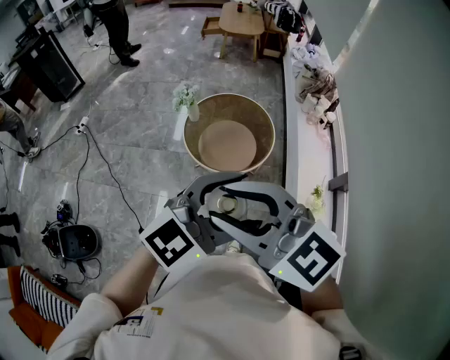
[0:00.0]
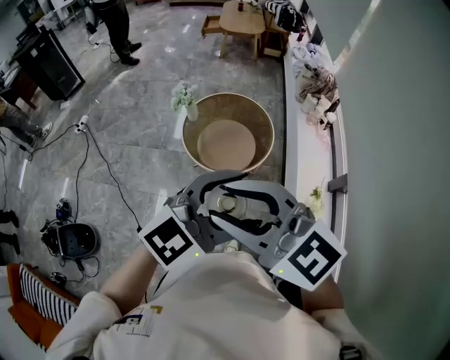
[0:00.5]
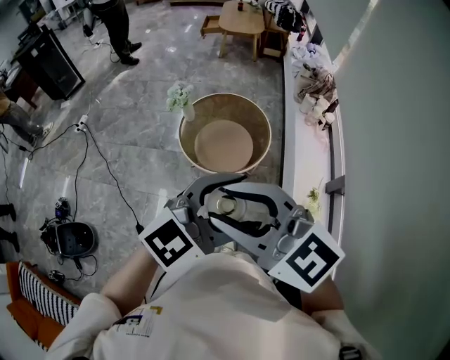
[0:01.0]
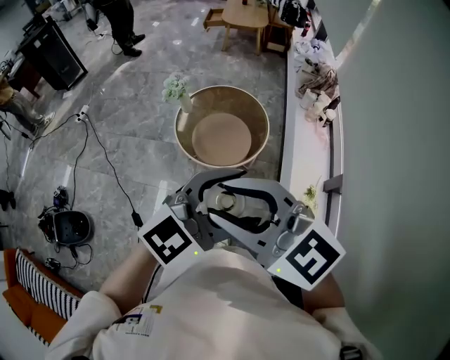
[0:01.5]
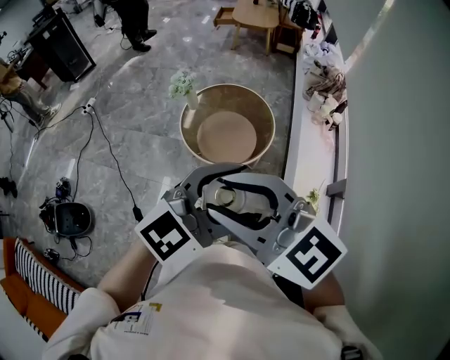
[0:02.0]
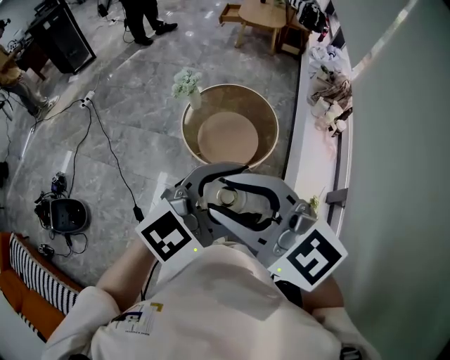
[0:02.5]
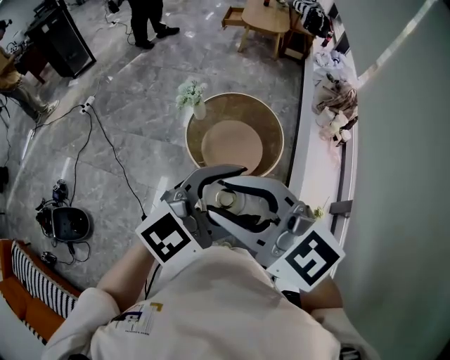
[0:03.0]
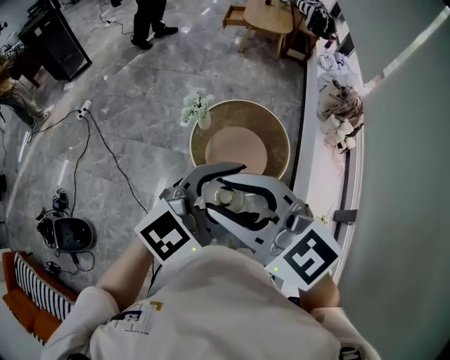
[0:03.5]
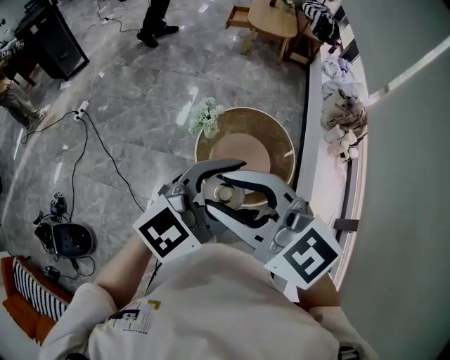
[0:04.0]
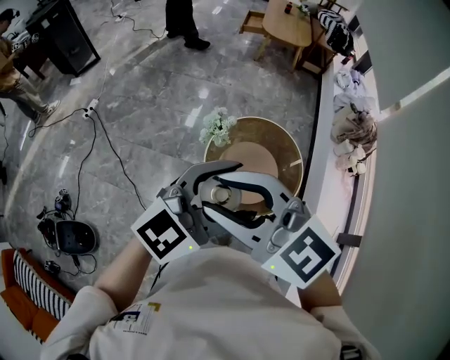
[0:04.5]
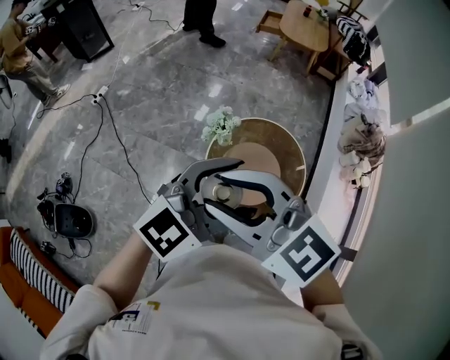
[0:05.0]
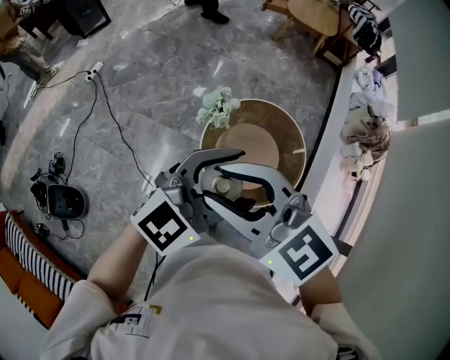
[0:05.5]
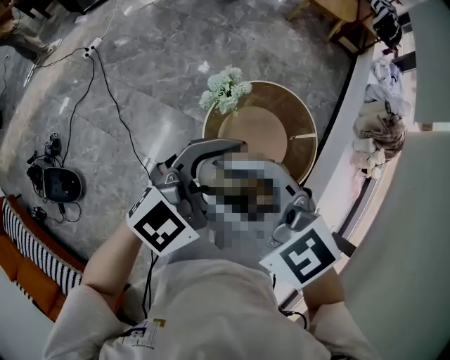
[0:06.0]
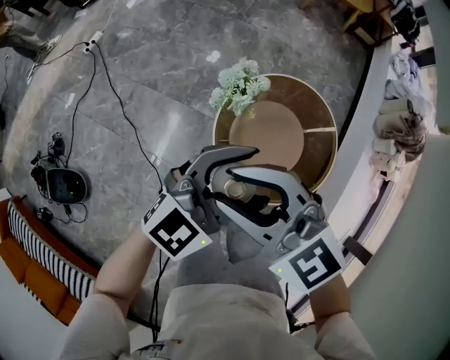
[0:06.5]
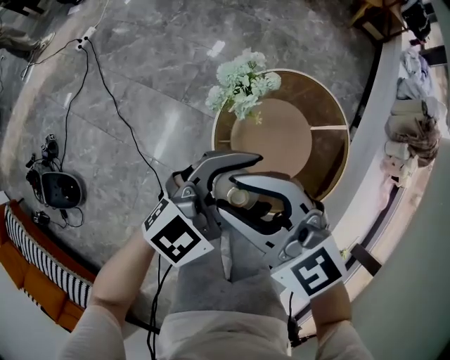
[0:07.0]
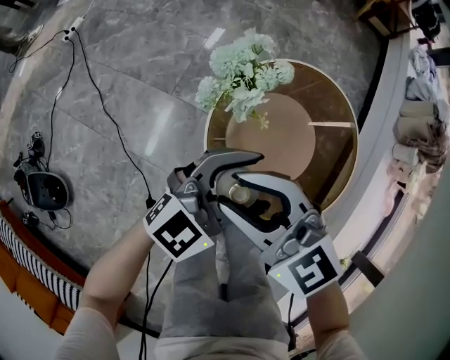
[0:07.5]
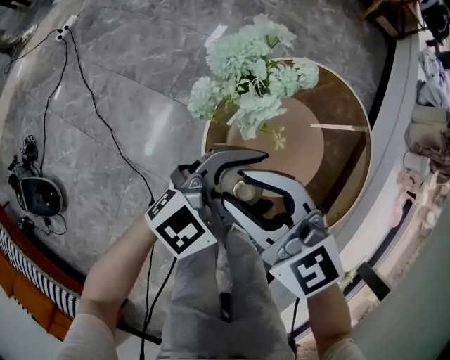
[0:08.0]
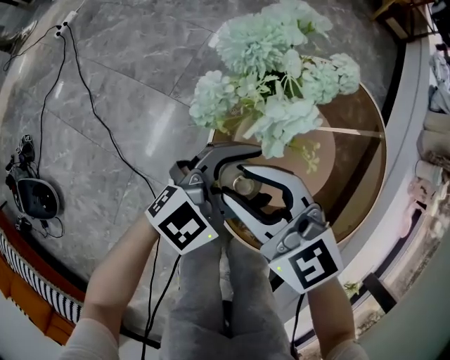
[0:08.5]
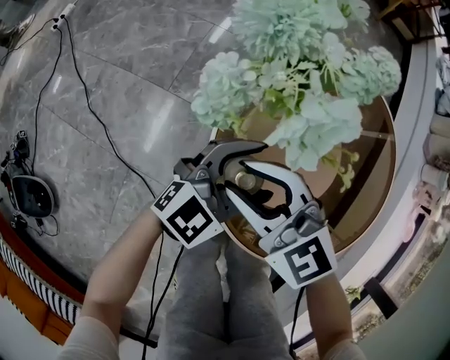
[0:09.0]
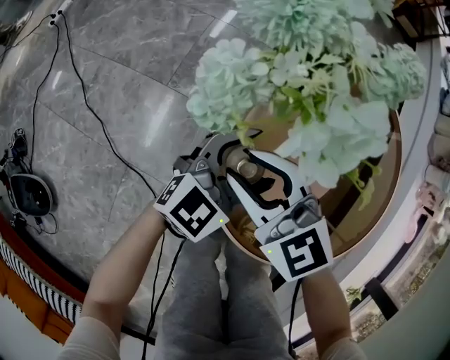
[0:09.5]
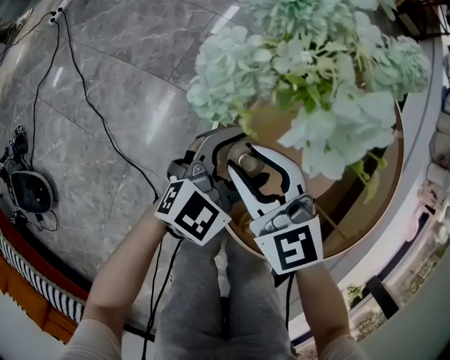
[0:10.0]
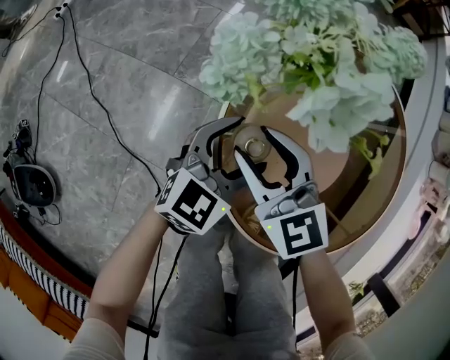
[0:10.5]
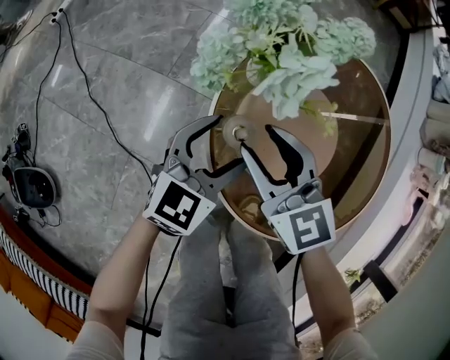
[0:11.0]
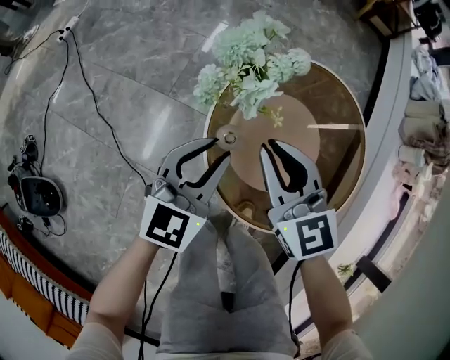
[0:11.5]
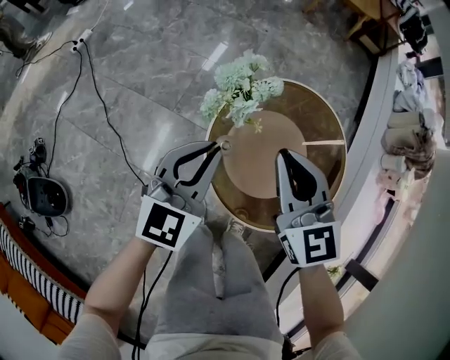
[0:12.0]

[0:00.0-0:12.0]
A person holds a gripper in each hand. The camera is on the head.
0:00.0 to 0:02.0: Both grippers move to the right, about 10 cm.
0:02.0 to 0:04.0: Both grippers travel together forward and to the left, about 35 cm.
0:04.0 to 0:06.0: The right gripper moves downward and forward, roughly 15 cm. The left gripper goes about 20 cm forward and downward.
0:06.0 to 0:08.0: Both grippers move downward, about 40 cm.
0:08.0 to 0:10.0: The grippers both shift downward by roughly 20 cm.
0:10.0 to 0:12.0: Both grippers move upward, approximately 30 cm. The right gripper changes its angle by about 20 degrees, and closes, while the left gripper rotates roughly 20 degrees, and closes up.

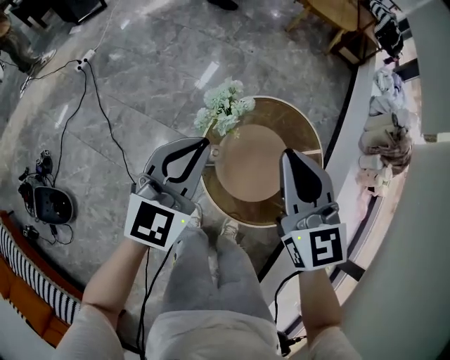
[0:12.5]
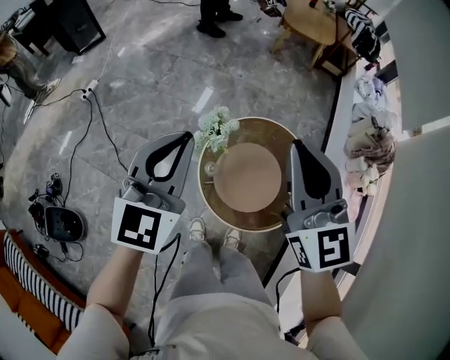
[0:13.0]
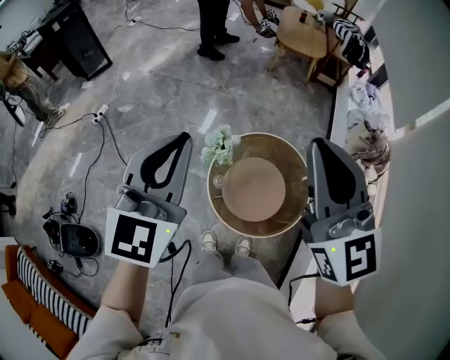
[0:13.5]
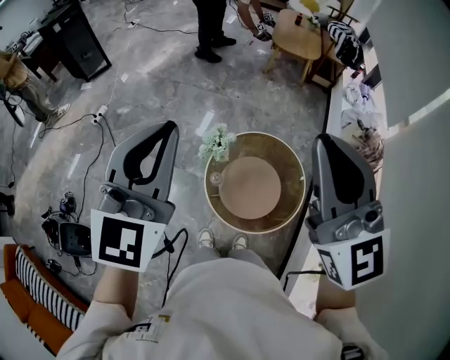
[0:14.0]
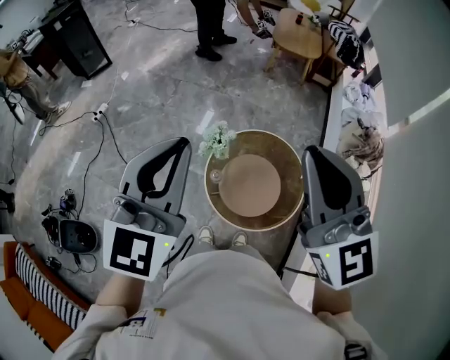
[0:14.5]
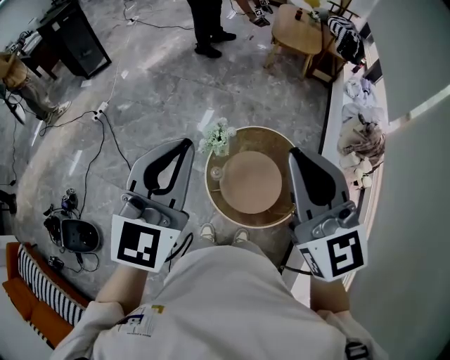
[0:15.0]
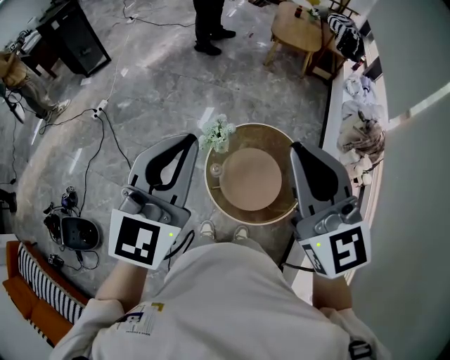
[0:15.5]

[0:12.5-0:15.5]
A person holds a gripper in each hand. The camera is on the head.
0:12.5 to 0:14.0: Both grippers move upward, some 35 cm. The right gripper changes its angle by some 20 degrees.
0:14.0 to 0:15.5: The left gripper ends up roughly 5 cm from where it was, while the right gripper shifts some 5 cm downward.

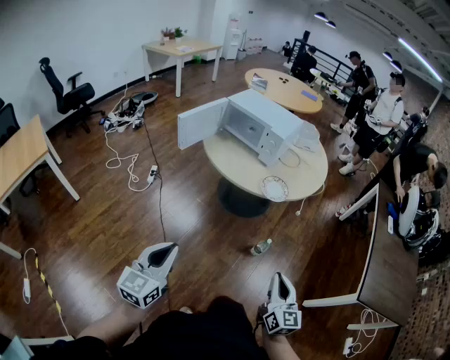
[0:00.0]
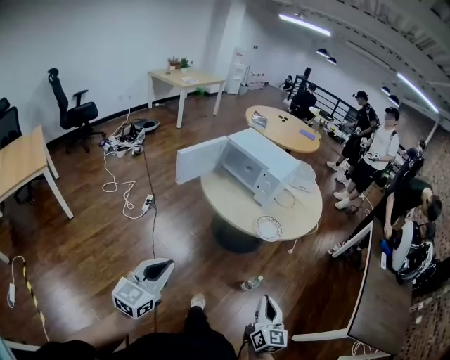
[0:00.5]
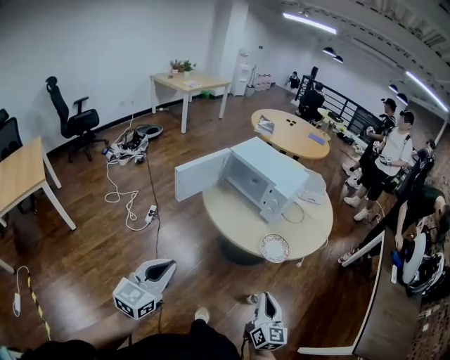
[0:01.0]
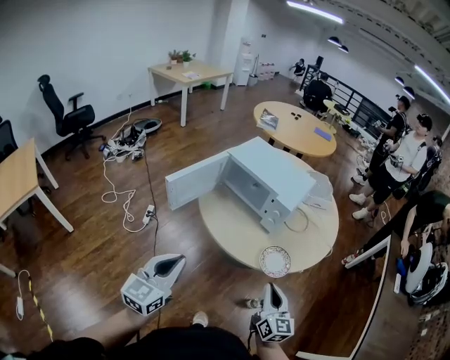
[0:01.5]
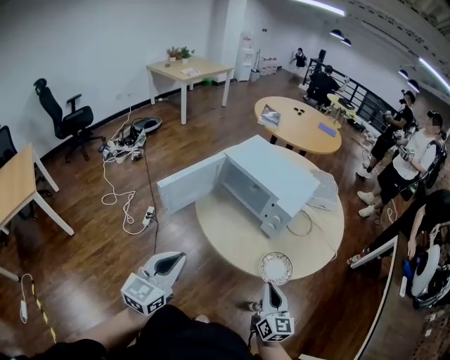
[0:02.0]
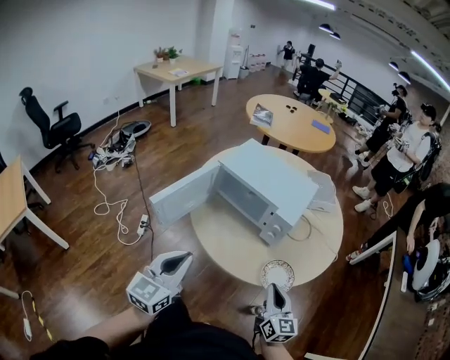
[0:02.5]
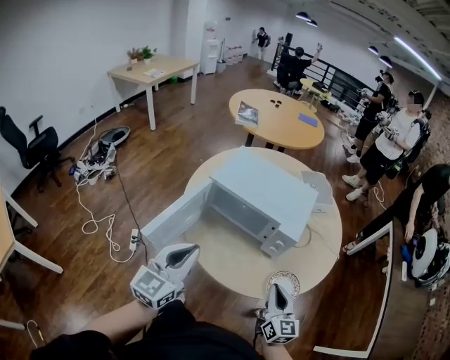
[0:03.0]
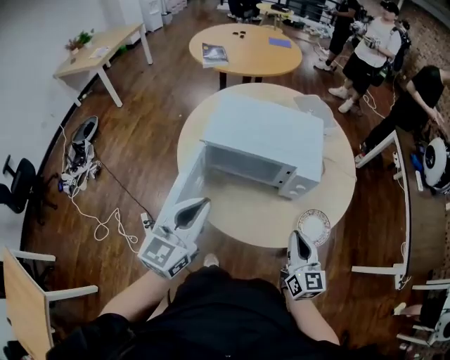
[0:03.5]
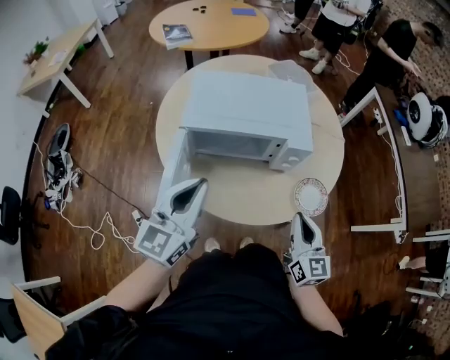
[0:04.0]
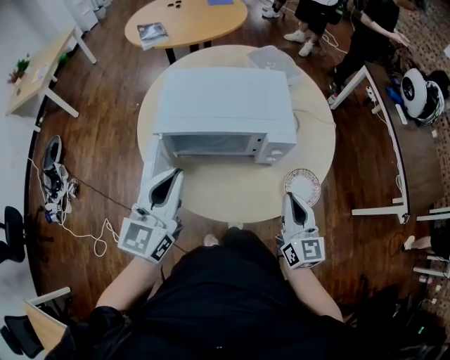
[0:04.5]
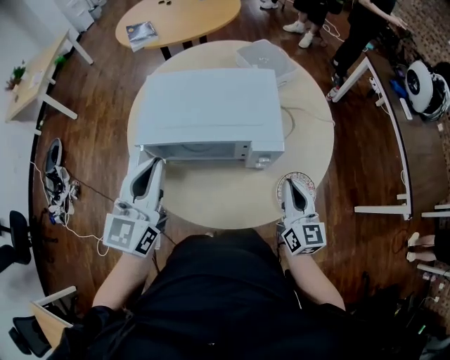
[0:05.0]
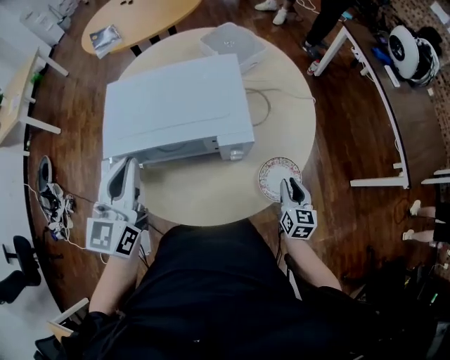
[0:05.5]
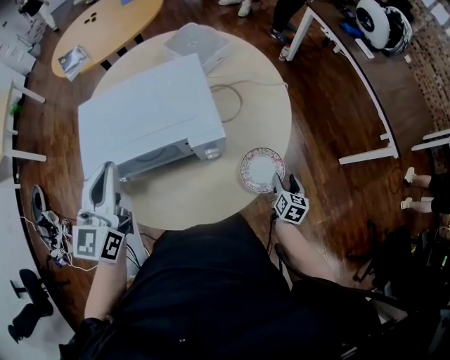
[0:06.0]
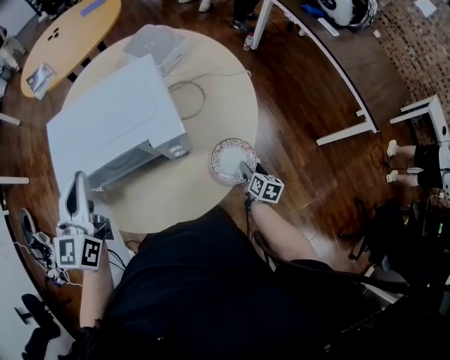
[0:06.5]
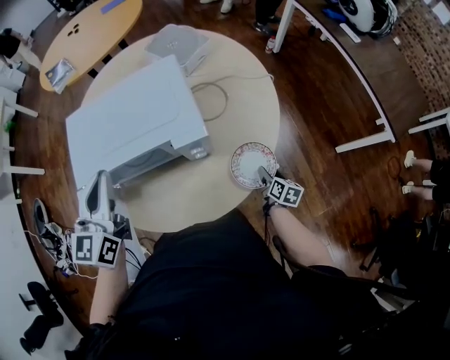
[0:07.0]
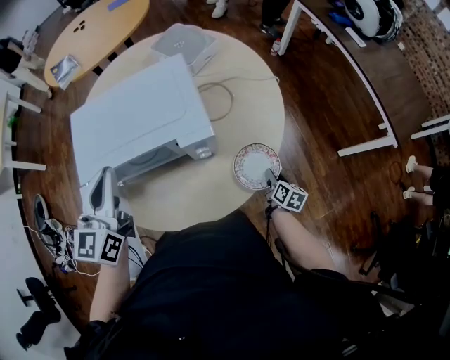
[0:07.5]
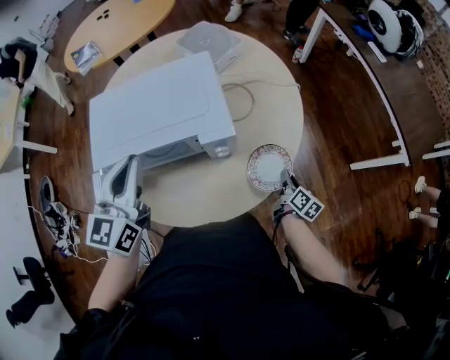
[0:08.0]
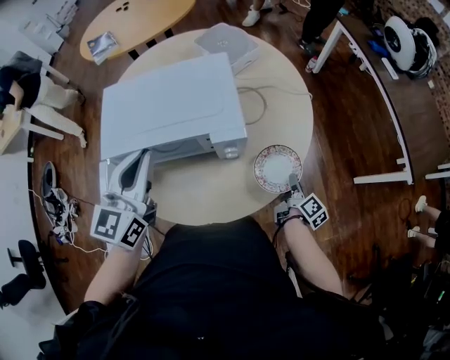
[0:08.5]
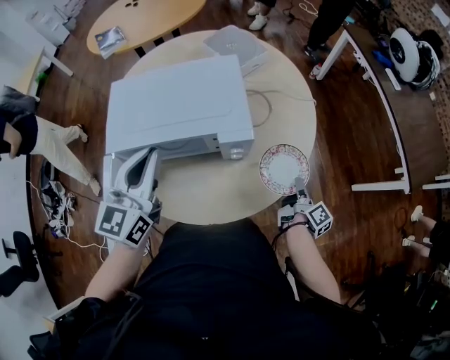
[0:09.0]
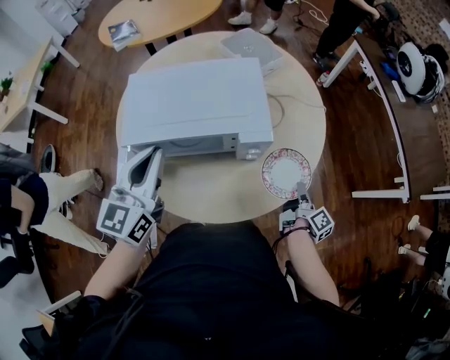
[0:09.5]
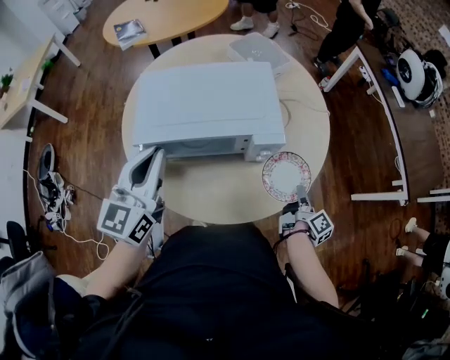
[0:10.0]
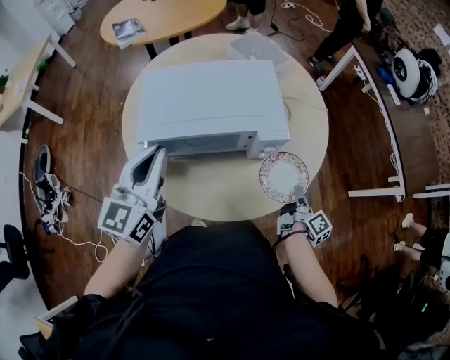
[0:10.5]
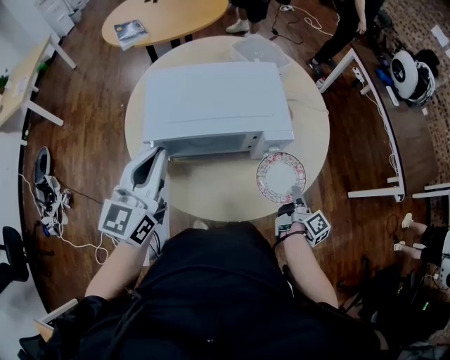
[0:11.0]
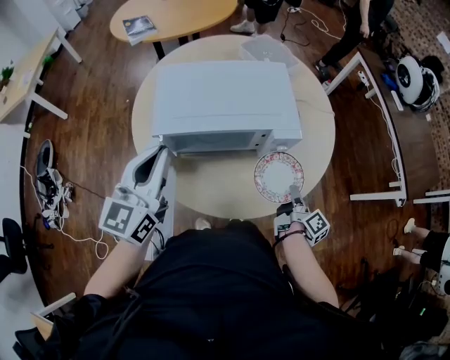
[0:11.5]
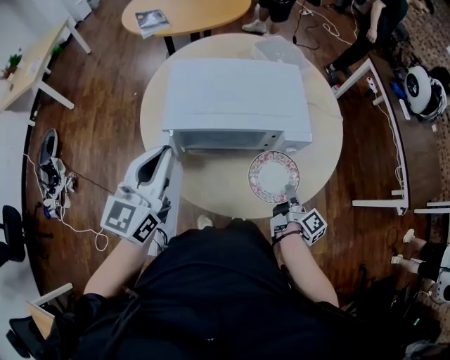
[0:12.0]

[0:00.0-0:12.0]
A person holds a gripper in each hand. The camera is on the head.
0:00.0 to 0:02.0: The two grippers go about 30 cm forward.
0:02.0 to 0:04.0: The right gripper moves roughly 15 cm, and swivels some 40 degrees. The left gripper shifts by approximately 30 cm, and swivels roughly 40 degrees.
0:04.0 to 0:06.0: The left gripper heads forward, covering about 15 cm, while the right gripper is displaced downward and to the right by some 30 cm, rotates some 50 degrees, and opens up.
0:06.0 to 0:08.0: The right gripper turns by about 30 degrees, and closes its fingers.
0:08.0 to 0:10.0: The left gripper moves to the left, approximately 5 cm; the right gripper goes some 10 cm upward, and turns by roughly 30 degrees.
0:10.0 to 0:12.0: The left gripper moves to the left, roughly 5 cm. The right gripper moves to the left, some 10 cm.
